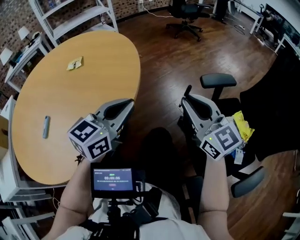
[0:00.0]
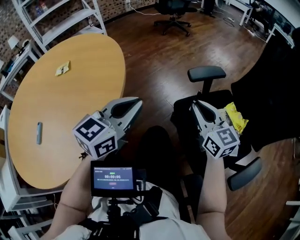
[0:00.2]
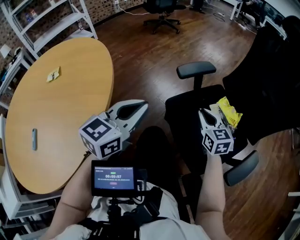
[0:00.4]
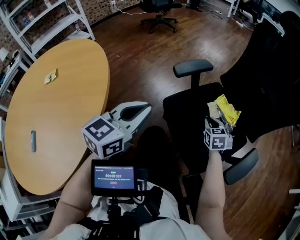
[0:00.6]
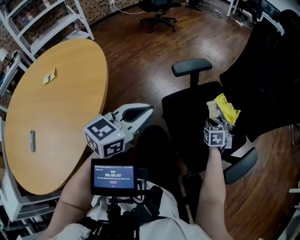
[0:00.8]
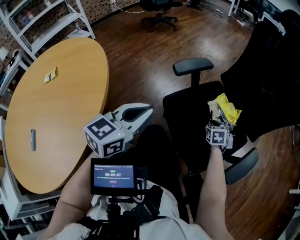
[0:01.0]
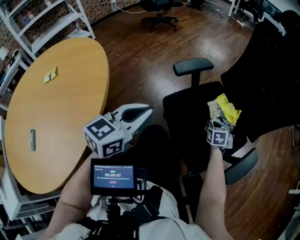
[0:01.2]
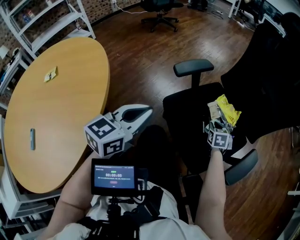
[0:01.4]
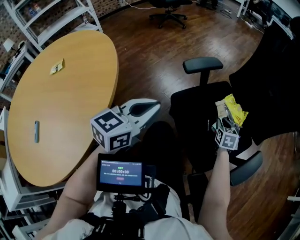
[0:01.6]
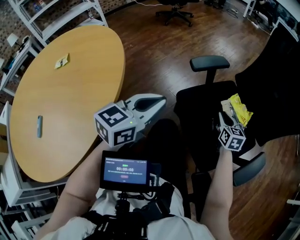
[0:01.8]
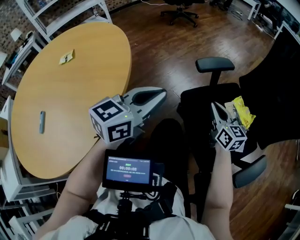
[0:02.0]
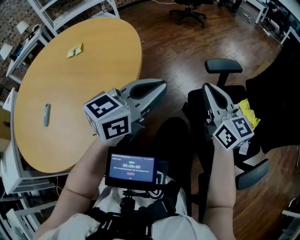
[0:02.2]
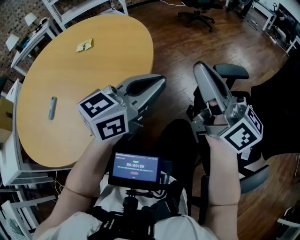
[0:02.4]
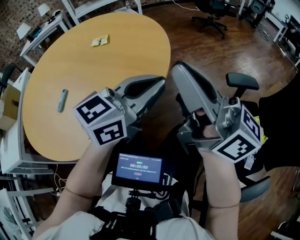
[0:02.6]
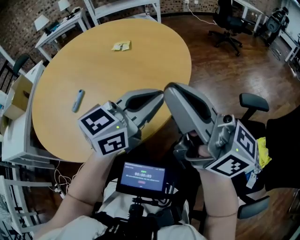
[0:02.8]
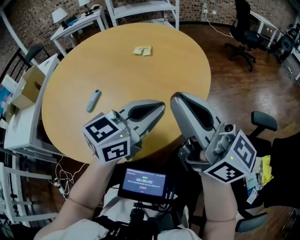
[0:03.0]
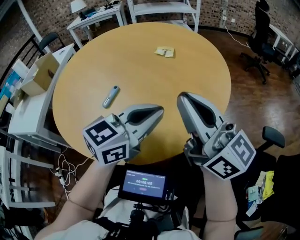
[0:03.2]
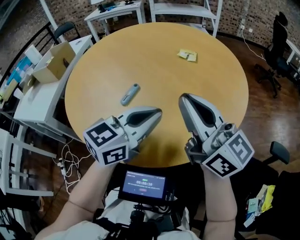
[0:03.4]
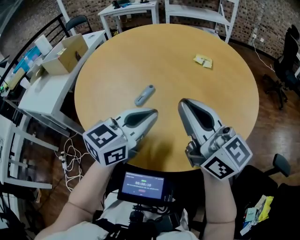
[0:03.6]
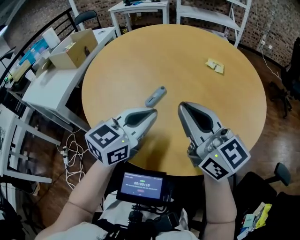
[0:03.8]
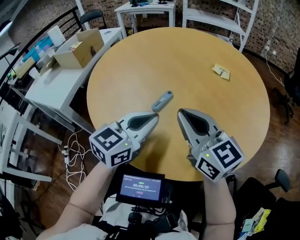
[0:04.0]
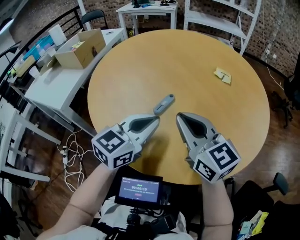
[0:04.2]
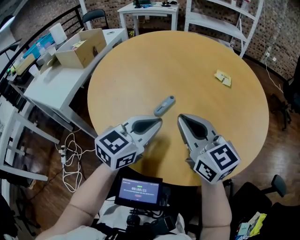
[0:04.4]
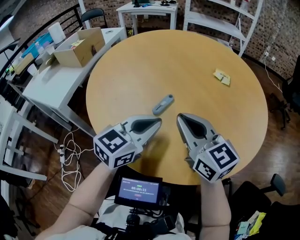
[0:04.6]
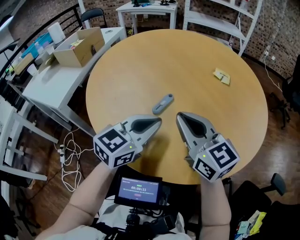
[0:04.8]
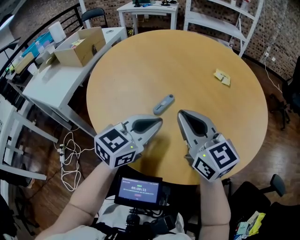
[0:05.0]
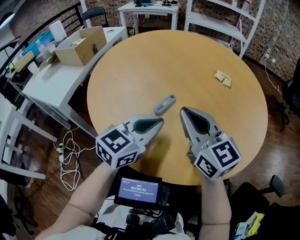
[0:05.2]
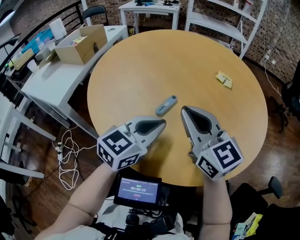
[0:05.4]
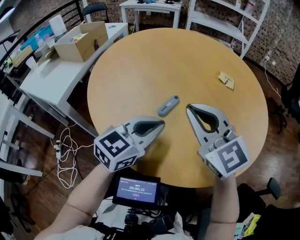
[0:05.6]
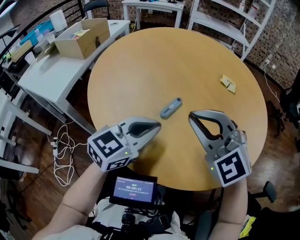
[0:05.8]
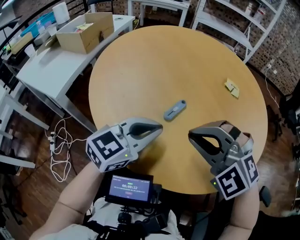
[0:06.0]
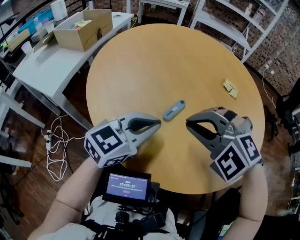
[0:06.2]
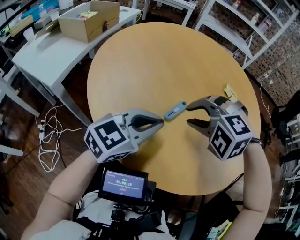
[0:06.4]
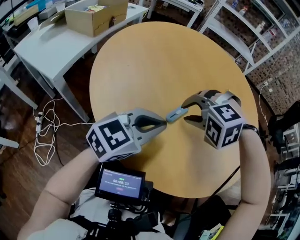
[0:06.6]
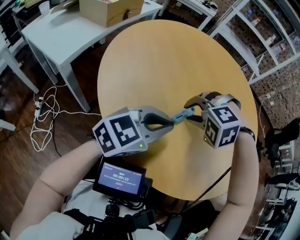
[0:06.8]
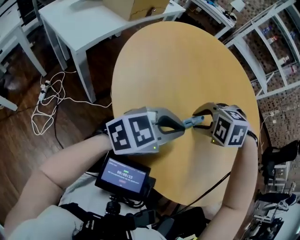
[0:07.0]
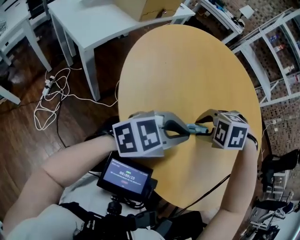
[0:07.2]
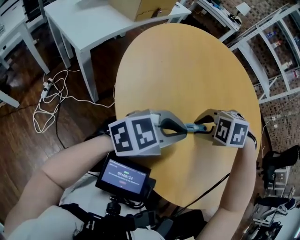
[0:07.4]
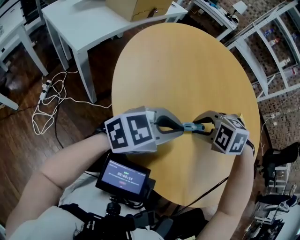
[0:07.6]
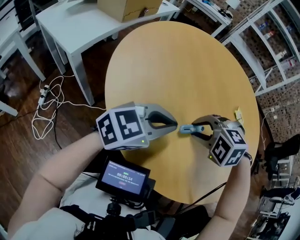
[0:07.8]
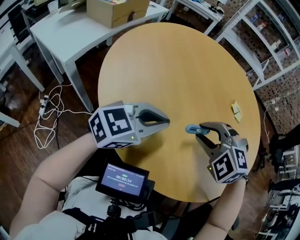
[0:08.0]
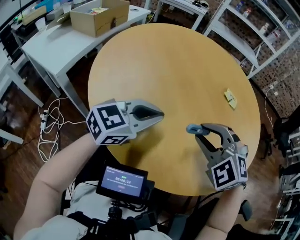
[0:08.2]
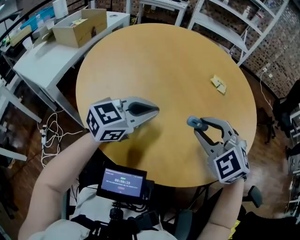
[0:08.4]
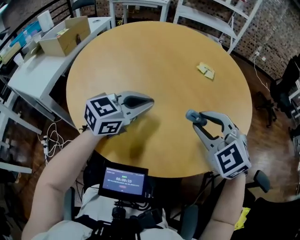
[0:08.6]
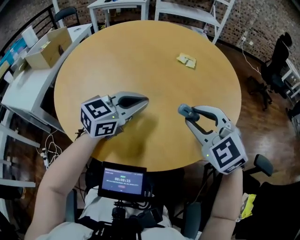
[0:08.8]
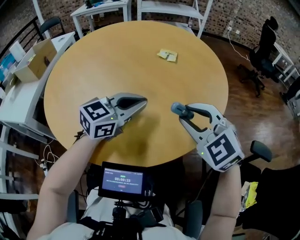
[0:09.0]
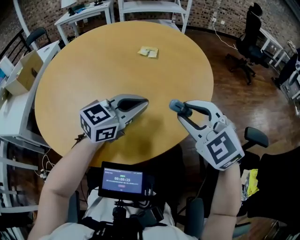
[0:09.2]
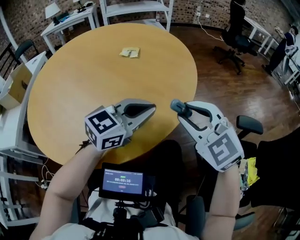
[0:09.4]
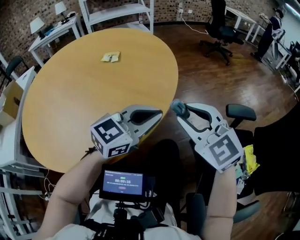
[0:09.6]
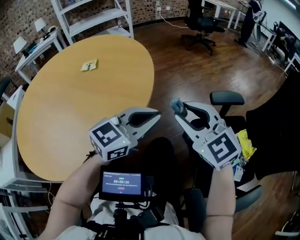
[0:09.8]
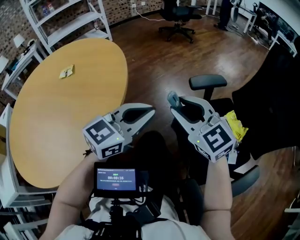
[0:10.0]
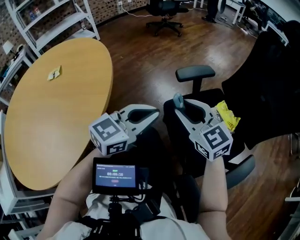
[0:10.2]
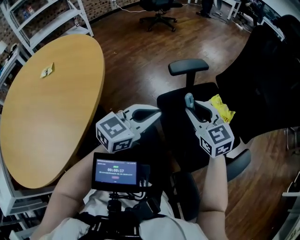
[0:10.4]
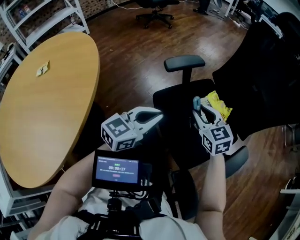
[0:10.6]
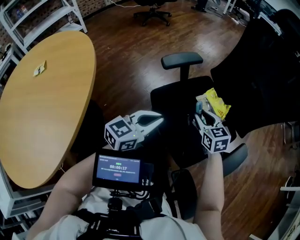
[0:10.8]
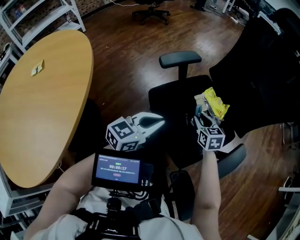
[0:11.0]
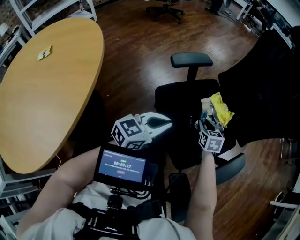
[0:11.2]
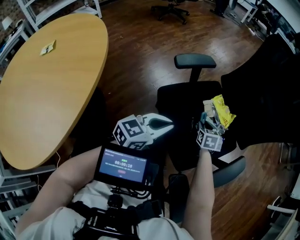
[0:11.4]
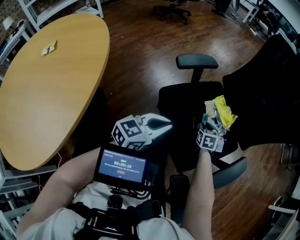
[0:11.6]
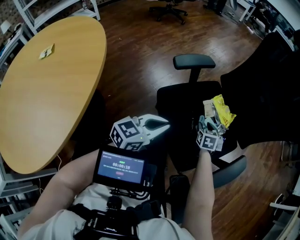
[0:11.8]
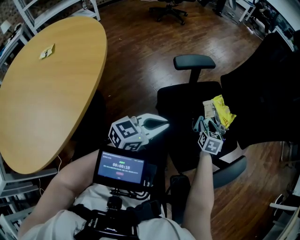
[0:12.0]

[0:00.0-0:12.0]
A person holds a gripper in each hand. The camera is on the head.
0:00.0 to 0:01.6: The left gripper ends up about 15 cm from where it was, and changes its angle by about 20 degrees, while the right gripper ends up roughly 40 cm from where it was, and points its fingers roughly 40 degrees further downward.
0:01.6 to 0:03.0: The right gripper ends up roughly 70 cm from where it was, angles its fingers upward, by some 60 degrees, and closes. Meanwhile the left gripper moves roughly 30 cm, and swivels approximately 30 degrees.
0:03.0 to 0:04.4: The right gripper moves to the left, downward and forward, approximately 30 cm, and rotates some 30 degrees; the left gripper shifts roughly 25 cm to the left, and turns by approximately 30 degrees.
0:04.4 to 0:06.0: The right gripper rolls counterclockwise, seen from behind, by approximately 60 degrees.
0:06.0 to 0:07.6: The right gripper heads downward, covering some 10 cm, points its fingers about 40 degrees further downward, and opens its fingers.
0:07.6 to 0:09.0: The right gripper changes place by roughly 25 cm, and tips its fingers upward by about 50 degrees, while the left gripper changes place by roughly 20 cm.
0:09.0 to 0:10.4: The two grippers travel together, about 50 cm. The left gripper changes its angle by about 40 degrees; the right gripper changes its angle by roughly 70 degrees.
0:10.4 to 0:12.0: The right gripper goes roughly 25 cm downward and to the right, and swivels roughly 40 degrees, while the left gripper moves downward and to the right, roughly 10 cm.

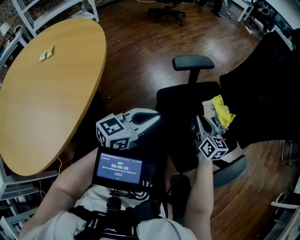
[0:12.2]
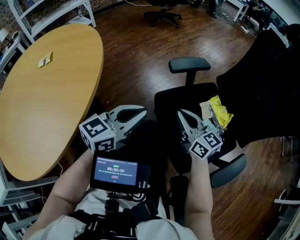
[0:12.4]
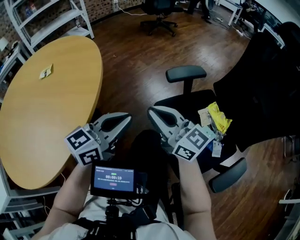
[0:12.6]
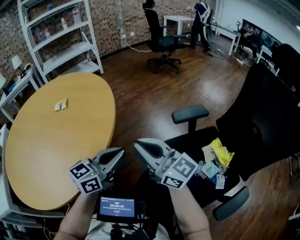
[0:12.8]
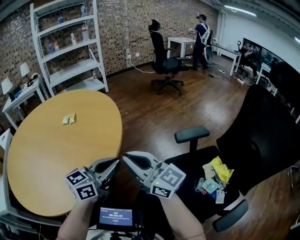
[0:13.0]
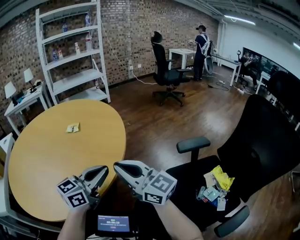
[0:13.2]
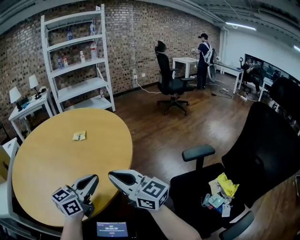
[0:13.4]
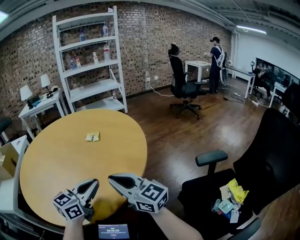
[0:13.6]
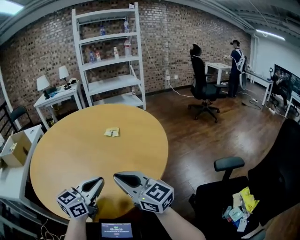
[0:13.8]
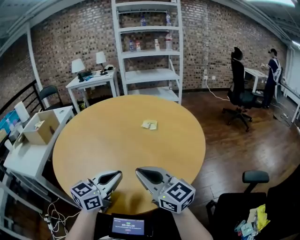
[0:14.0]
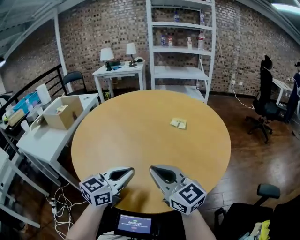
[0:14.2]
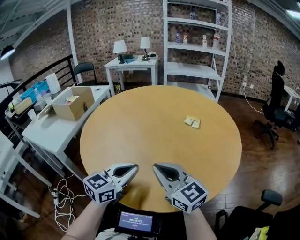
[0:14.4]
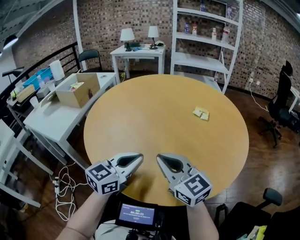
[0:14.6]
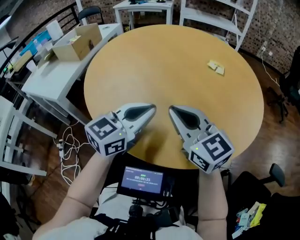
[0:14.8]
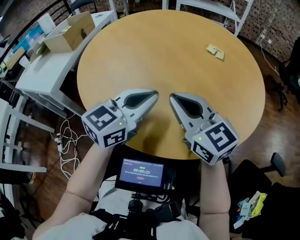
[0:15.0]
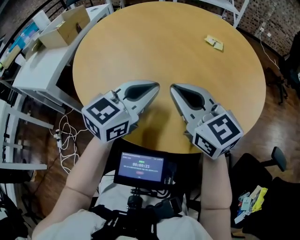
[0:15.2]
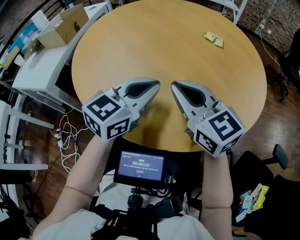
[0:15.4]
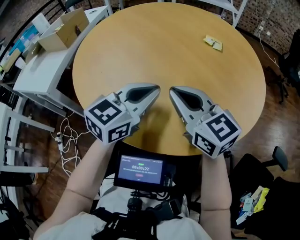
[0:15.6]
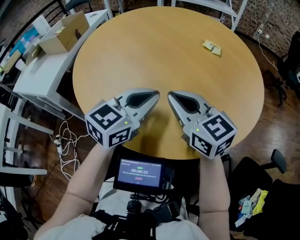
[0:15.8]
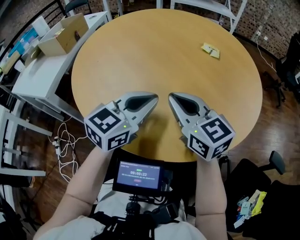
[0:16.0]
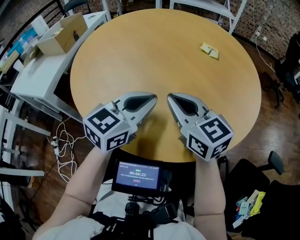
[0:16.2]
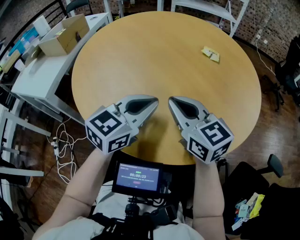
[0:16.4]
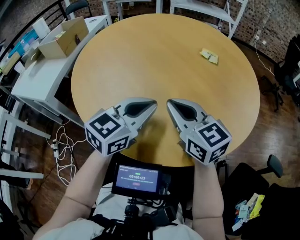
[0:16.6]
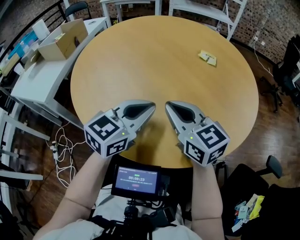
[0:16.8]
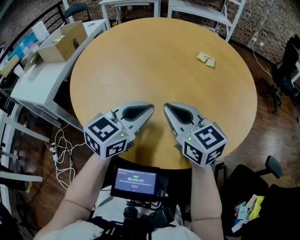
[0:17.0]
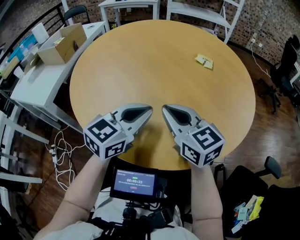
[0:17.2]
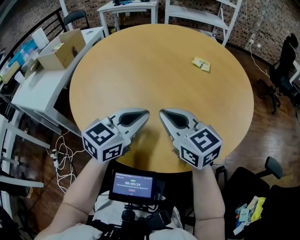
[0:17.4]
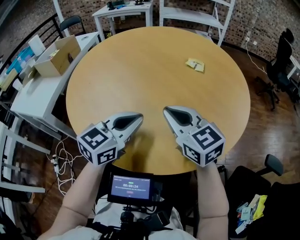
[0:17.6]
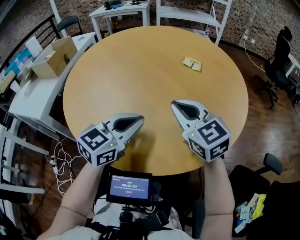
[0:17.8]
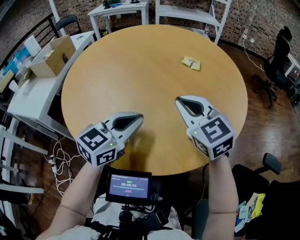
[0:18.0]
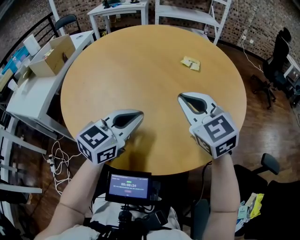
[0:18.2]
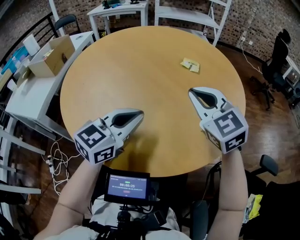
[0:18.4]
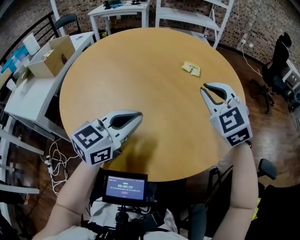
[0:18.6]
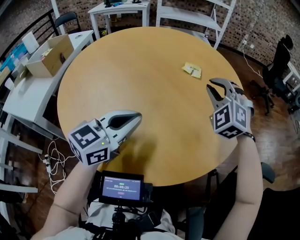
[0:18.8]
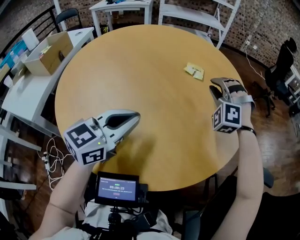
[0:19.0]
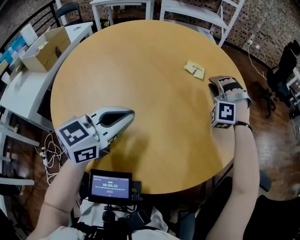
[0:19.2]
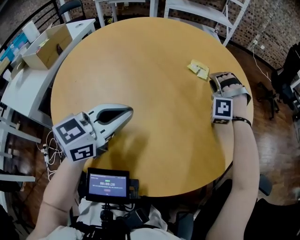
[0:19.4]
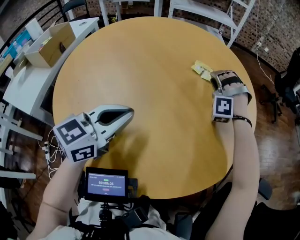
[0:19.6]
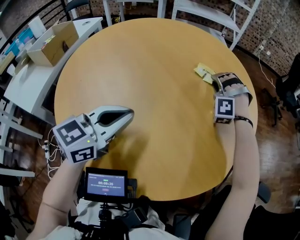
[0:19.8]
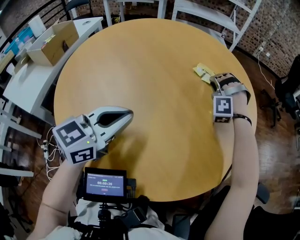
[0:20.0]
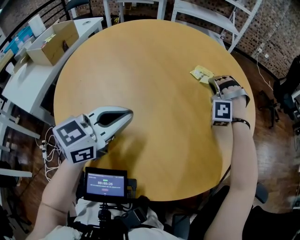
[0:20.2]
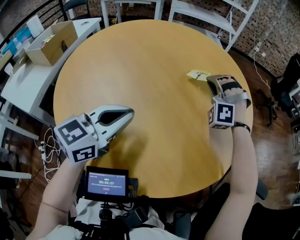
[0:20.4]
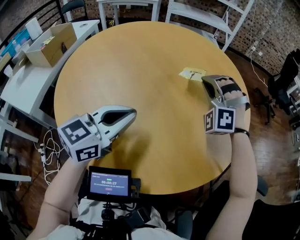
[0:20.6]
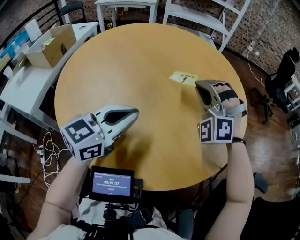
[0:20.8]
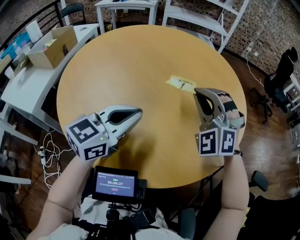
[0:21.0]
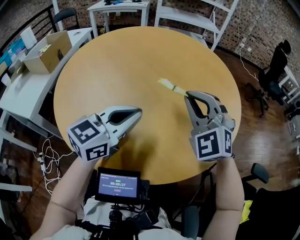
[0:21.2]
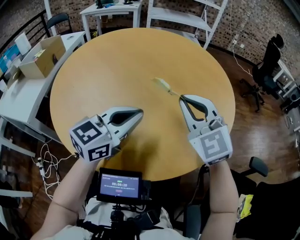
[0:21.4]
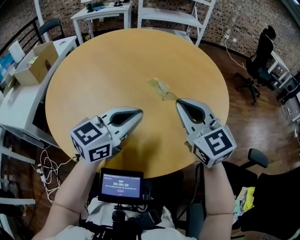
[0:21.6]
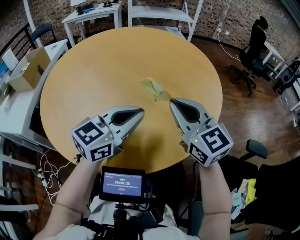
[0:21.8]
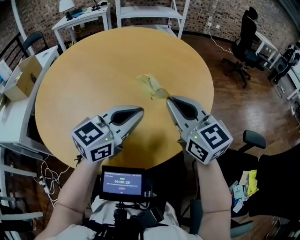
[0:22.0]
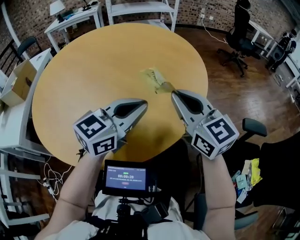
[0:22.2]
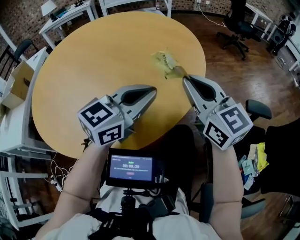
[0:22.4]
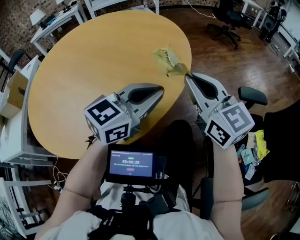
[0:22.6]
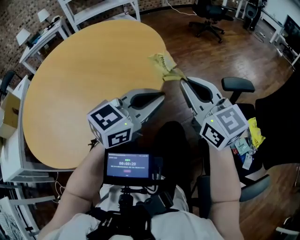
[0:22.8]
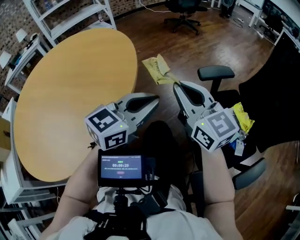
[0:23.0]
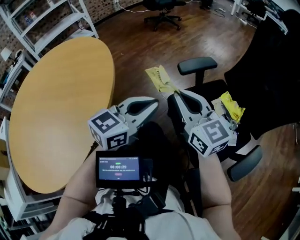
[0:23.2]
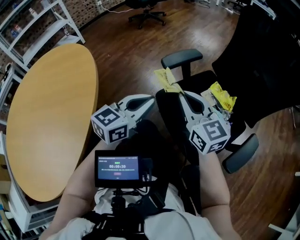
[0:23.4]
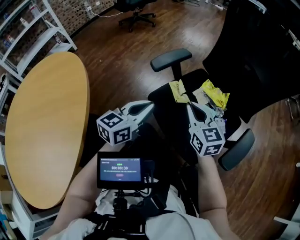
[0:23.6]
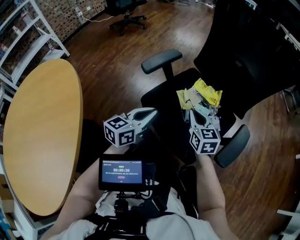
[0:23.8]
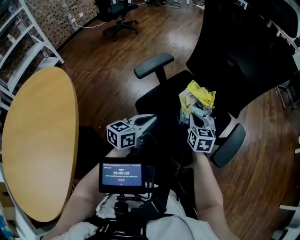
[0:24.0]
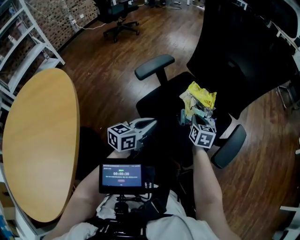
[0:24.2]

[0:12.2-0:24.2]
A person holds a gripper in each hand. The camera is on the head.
0:12.2 to 0:13.8: Both grippers are carried roughly 50 cm. The right gripper rotates some 70 degrees; the left gripper swivels approximately 50 degrees.
0:13.8 to 0:15.2: Both grippers move to the left, some 15 cm.
0:15.2 to 0:16.6: The grippers stay close to where they were, moving slightly.
0:16.6 to 0:18.2: The right gripper is displaced to the right by approximately 10 cm, and rotates some 20 degrees.
0:18.2 to 0:19.8: The left gripper goes approximately 5 cm to the left, while the right gripper goes roughly 30 cm forward, twists approximately 80 degrees counterclockwise, seen from behind, and opens.
0:19.8 to 0:21.2: The right gripper shifts approximately 30 cm backward and upward, twists some 50 degrees clockwise, seen from behind, and closes up.
0:21.2 to 0:22.6: Both grippers travel together to the right, approximately 25 cm. The right gripper rolls clockwise, seen from behind, by roughly 60 degrees. Meanwhile the left gripper changes its angle by approximately 30 degrees.
0:22.6 to 0:24.2: The right gripper moves some 60 cm, and tilts its fingers some 30 degrees downward. The left gripper shifts by approximately 40 cm, and changes its angle by approximately 50 degrees.
